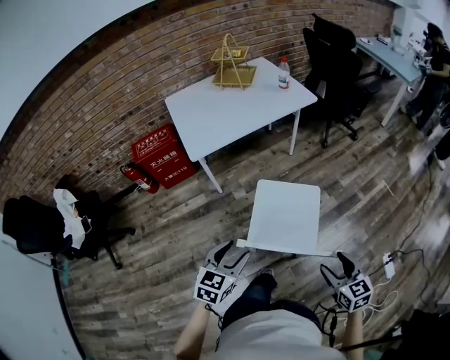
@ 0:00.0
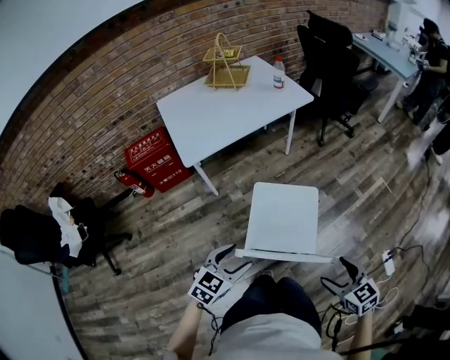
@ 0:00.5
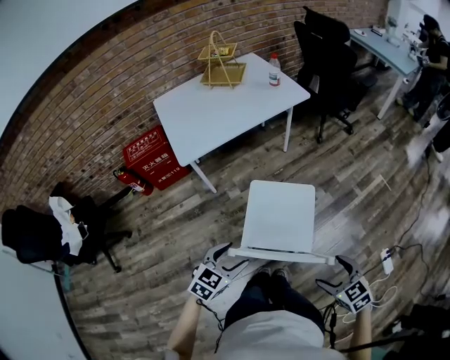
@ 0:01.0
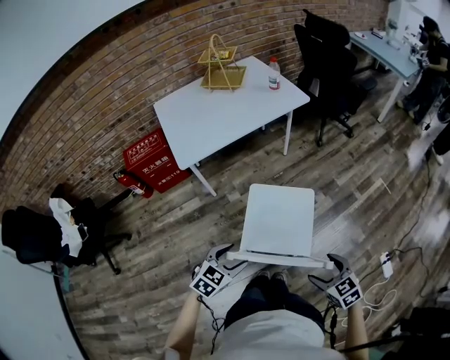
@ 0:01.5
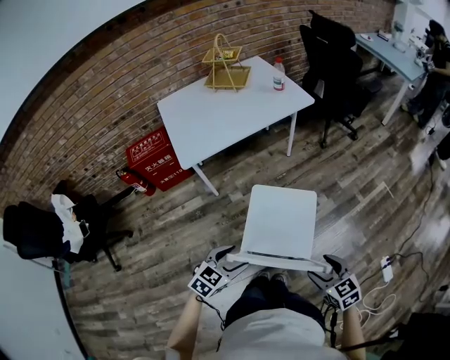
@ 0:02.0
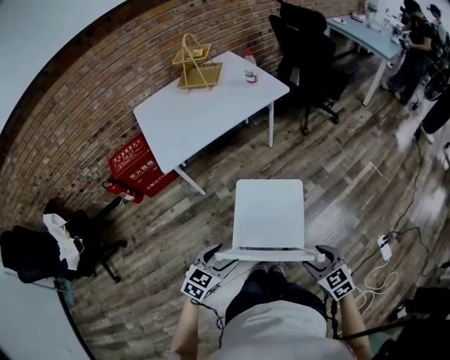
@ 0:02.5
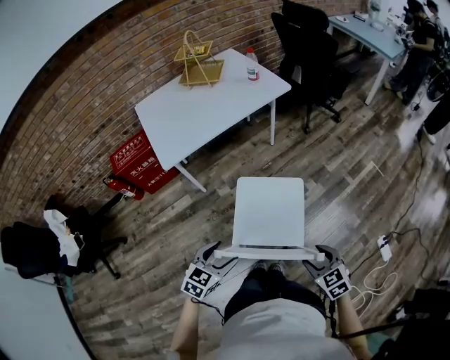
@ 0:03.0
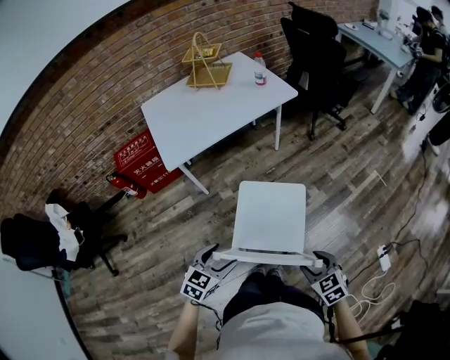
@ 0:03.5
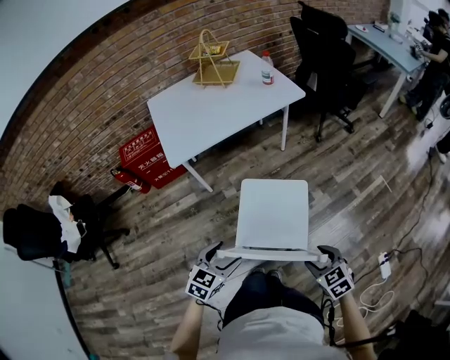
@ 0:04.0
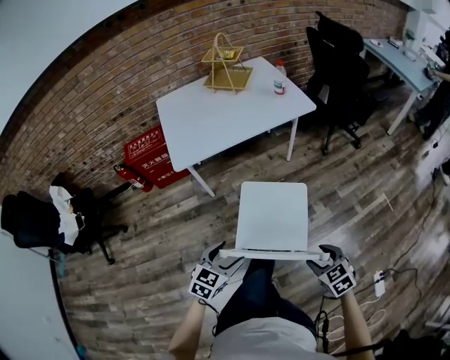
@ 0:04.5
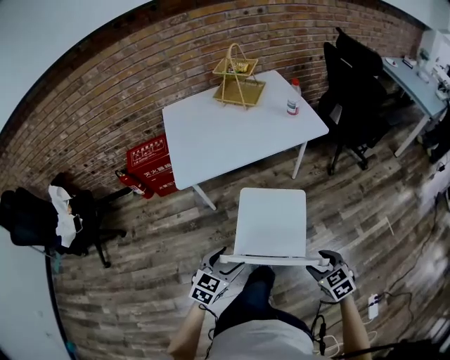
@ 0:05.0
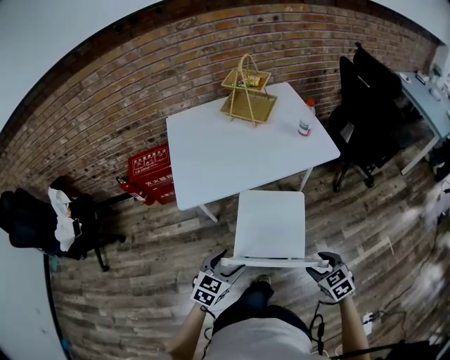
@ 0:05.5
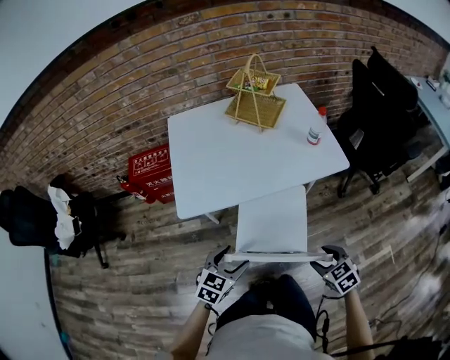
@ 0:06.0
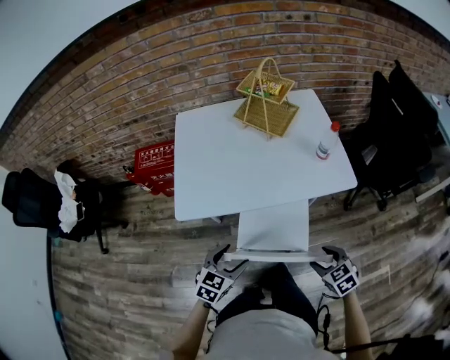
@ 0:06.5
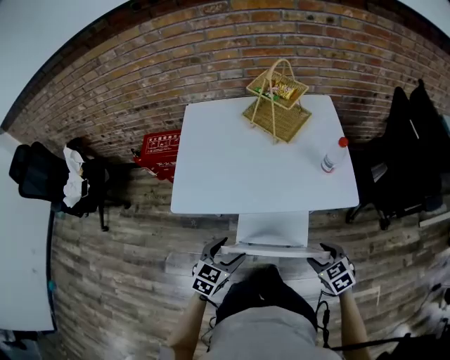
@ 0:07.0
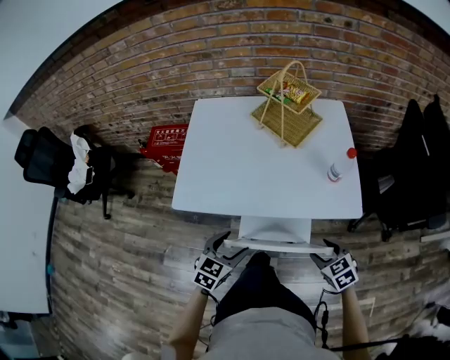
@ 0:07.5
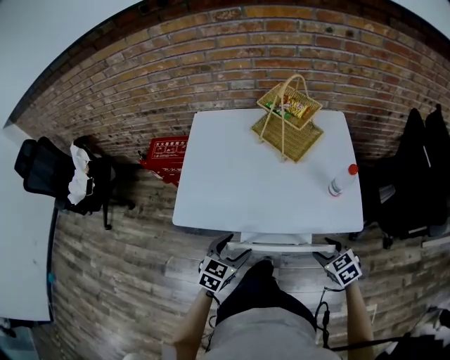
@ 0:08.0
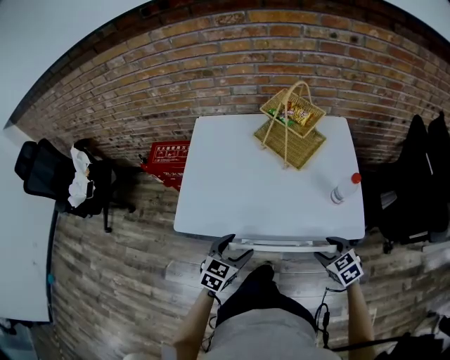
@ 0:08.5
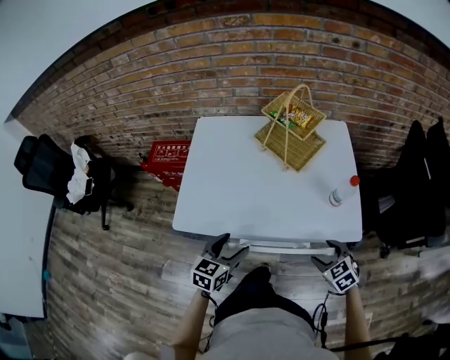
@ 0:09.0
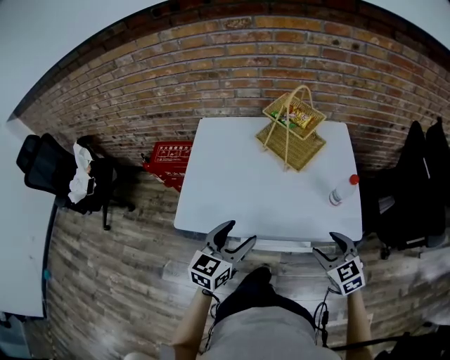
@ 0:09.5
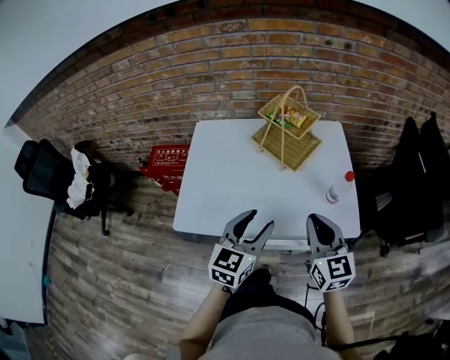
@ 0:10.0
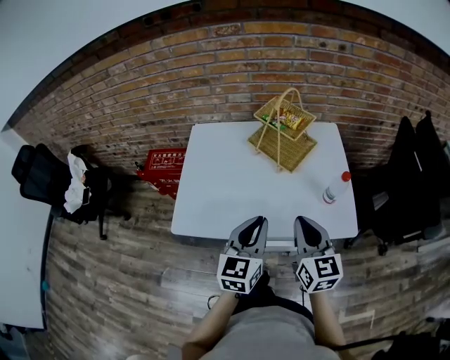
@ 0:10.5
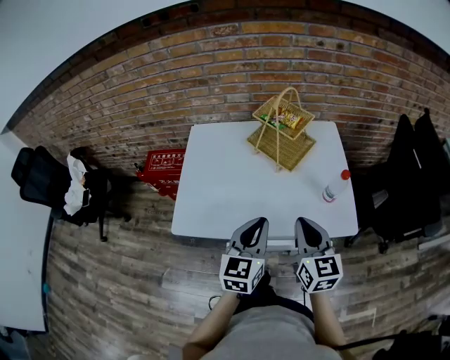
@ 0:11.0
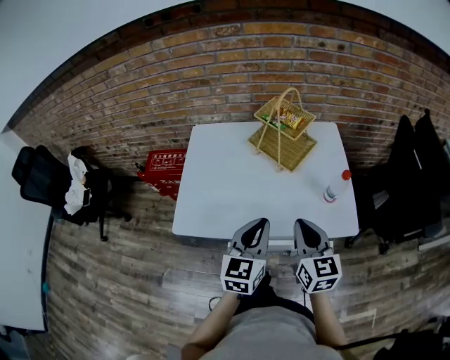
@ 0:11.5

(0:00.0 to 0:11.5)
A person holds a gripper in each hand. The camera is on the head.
0:00.0 - 0:02.0: The right gripper ends up approximately 5 cm from where it was; the left gripper travels downward by about 5 cm.
0:02.0 - 0:04.0: The right gripper moves roughly 5 cm.
0:04.0 - 0:06.0: The two grippers go approximately 35 cm forward.
0:06.0 - 0:07.5: The grippers both shift forward and to the right by roughly 20 cm.
0:07.5 - 0:09.5: The right gripper travels forward and upward by approximately 15 cm. The left gripper is displaced upward and forward by some 15 cm, and changes its angle by some 20 degrees.
0:09.5 - 0:11.5: The left gripper travels to the right by approximately 5 cm, and closes its fingers. The right gripper heads upward and to the left, covering about 15 cm, changes its angle by about 30 degrees, and closes.

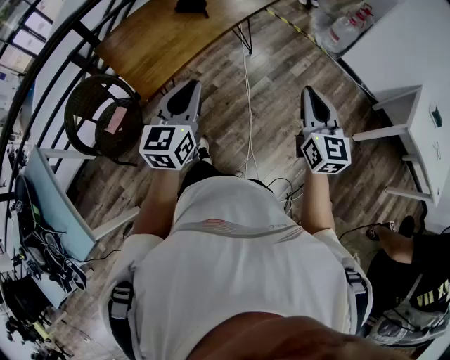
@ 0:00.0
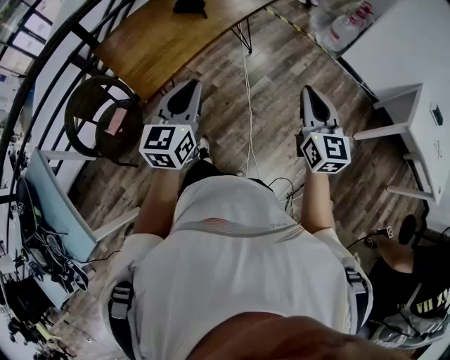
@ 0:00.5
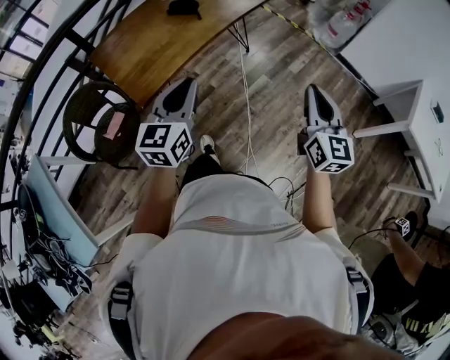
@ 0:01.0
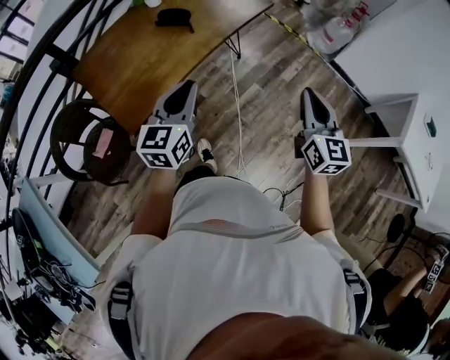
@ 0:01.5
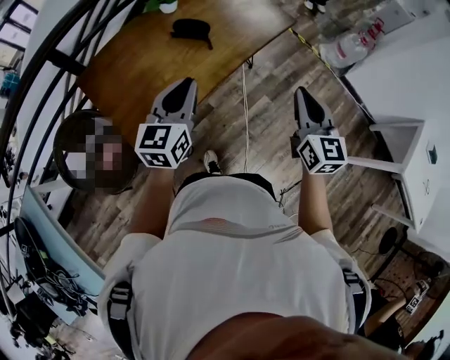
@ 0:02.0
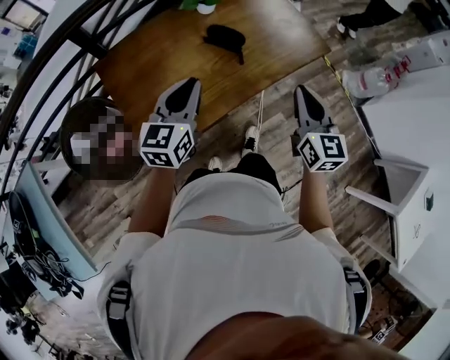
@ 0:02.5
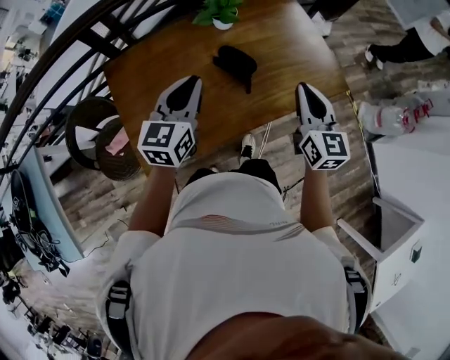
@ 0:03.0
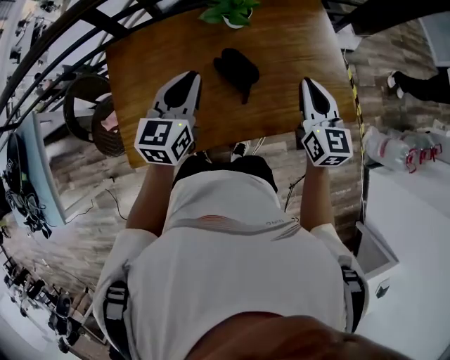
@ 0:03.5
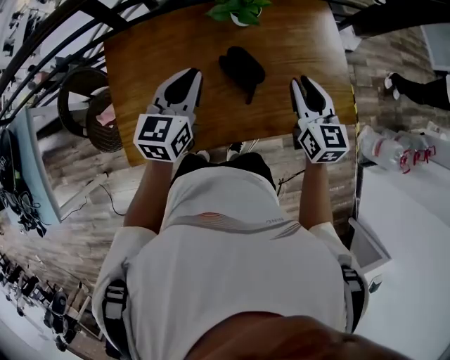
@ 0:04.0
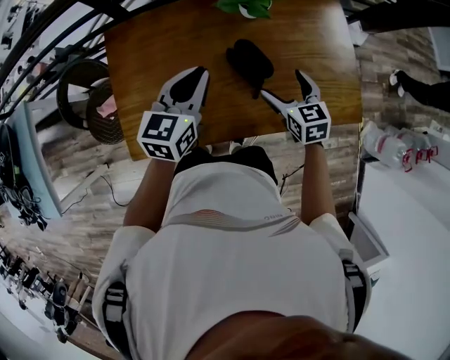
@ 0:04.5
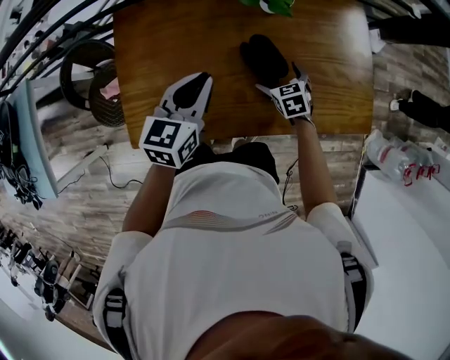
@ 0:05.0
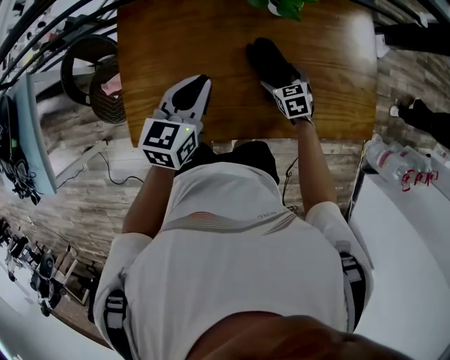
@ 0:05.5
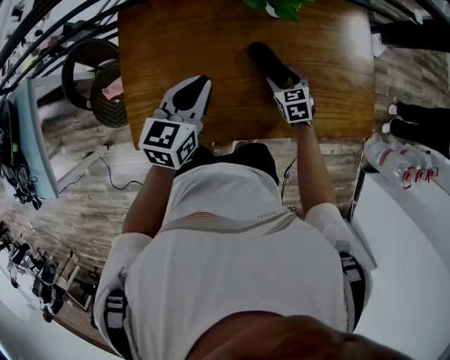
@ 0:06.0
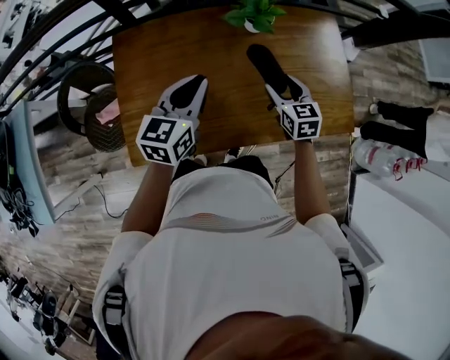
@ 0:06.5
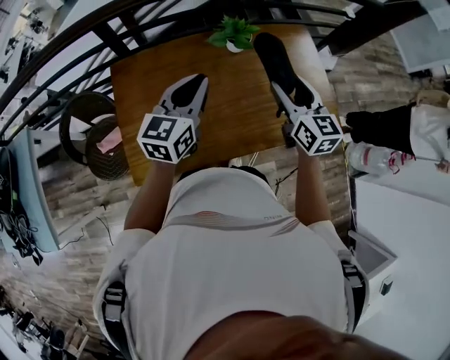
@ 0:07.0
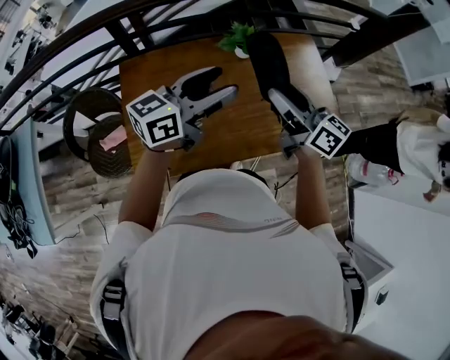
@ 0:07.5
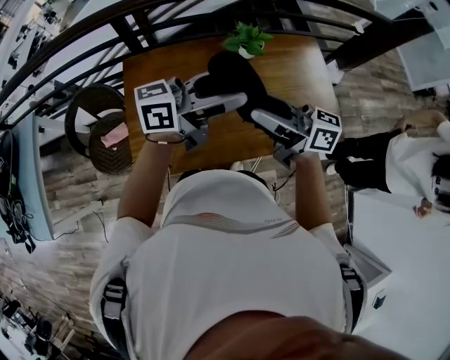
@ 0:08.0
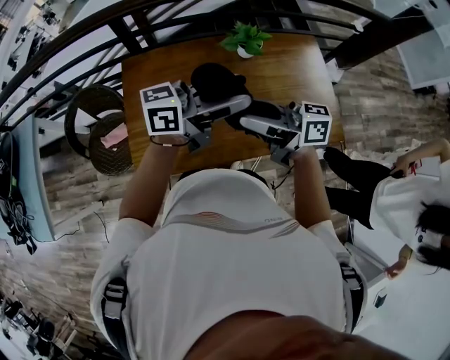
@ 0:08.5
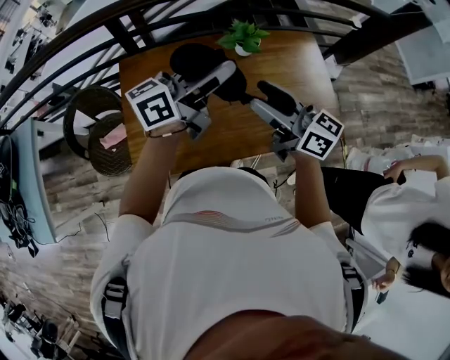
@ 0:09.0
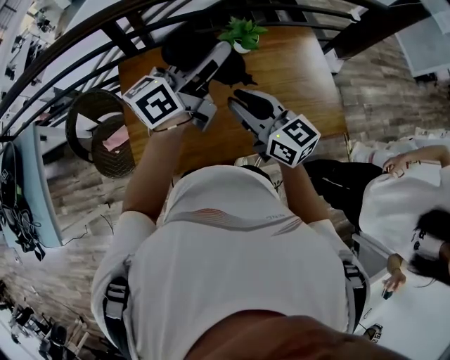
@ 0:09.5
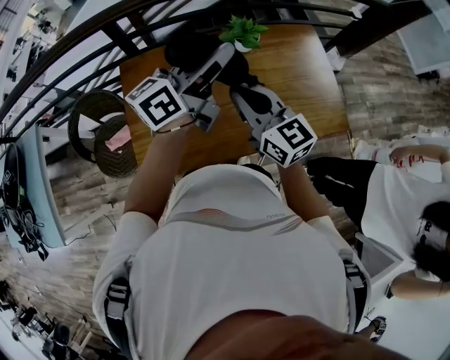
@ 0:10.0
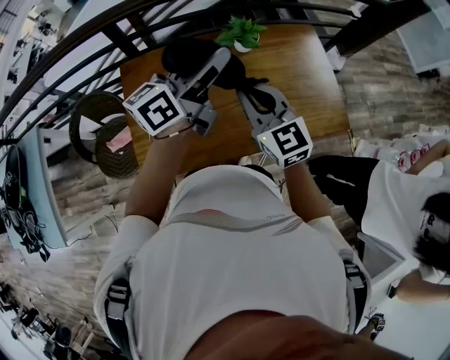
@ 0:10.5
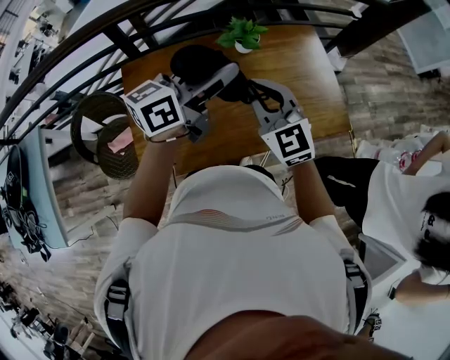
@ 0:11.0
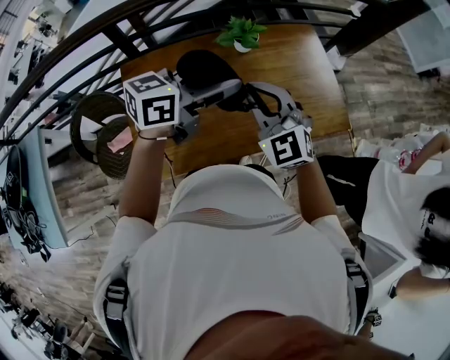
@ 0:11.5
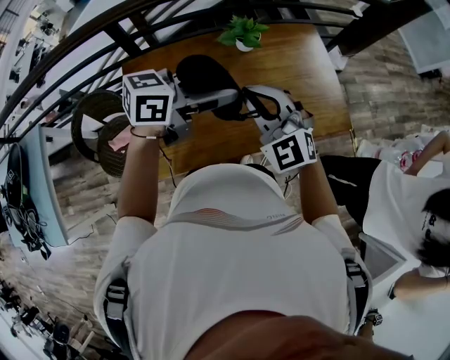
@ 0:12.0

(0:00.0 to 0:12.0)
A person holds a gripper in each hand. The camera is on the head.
0:00.0 - 0:02.0: Both grippers travel together forward, approximately 30 cm.
0:02.0 - 0:04.0: The left gripper ends up roughly 25 cm from where it was, and swivels roughly 30 degrees, while the right gripper shifts by about 40 cm, and changes its angle by some 40 degrees.
0:04.0 - 0:06.0: The left gripper heads downward, covering some 5 cm, while the right gripper moves downward, roughly 25 cm, rotates some 30 degrees, and opens, then closes once more.
0:06.0 - 0:08.0: The left gripper is displaced upward by approximately 20 cm, angles its fingers upward, by about 40 degrees, and opens; the right gripper moves upward, roughly 35 cm, and tips its fingers upward by approximately 60 degrees.
0:08.0 - 0:10.0: The right gripper turns by some 40 degrees, and closes its fingers; the left gripper moves about 10 cm, and rotates about 20 degrees.
0:10.0 - 0:12.0: The left gripper travels backward and downward by roughly 10 cm, and rotates approximately 40 degrees; the right gripper twists roughly 50 degrees counterclockwise, seen from behind.

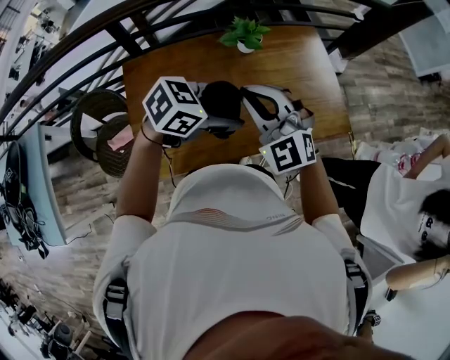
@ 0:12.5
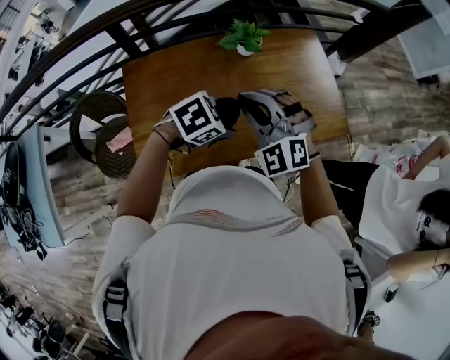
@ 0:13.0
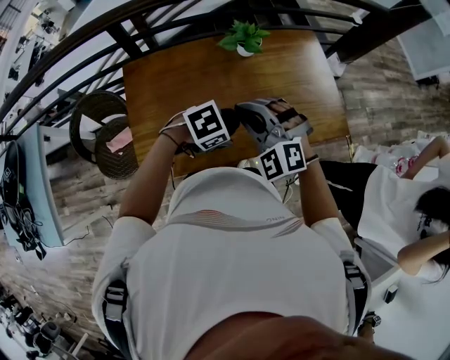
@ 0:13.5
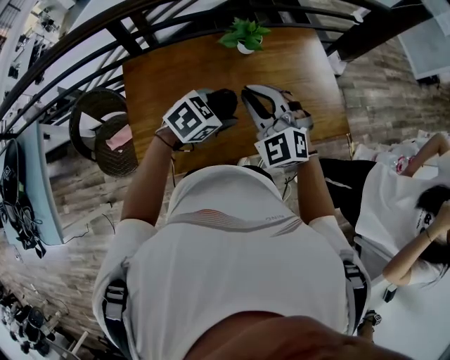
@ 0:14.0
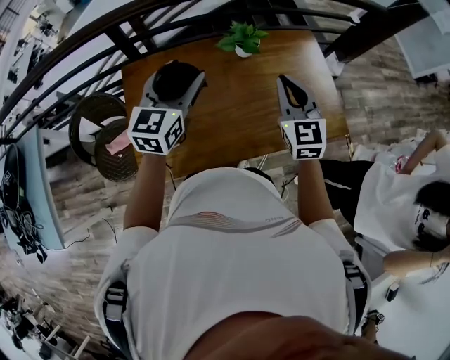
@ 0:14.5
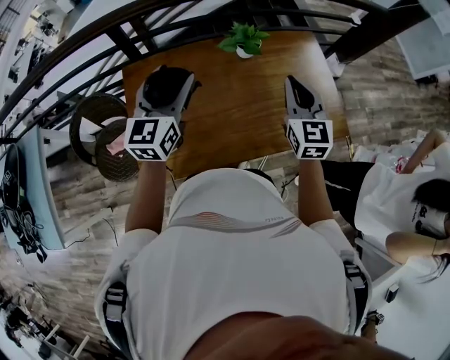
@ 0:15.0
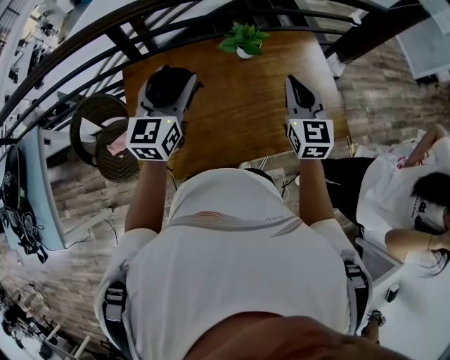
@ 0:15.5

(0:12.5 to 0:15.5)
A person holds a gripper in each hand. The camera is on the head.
0:12.5 - 0:14.0: The left gripper heads downward, covering roughly 10 cm.
0:14.0 - 0:15.5: The left gripper travels to the left, upward and forward by roughly 20 cm, and tips its fingers upward by some 40 degrees; the right gripper moves to the right and forward, approximately 15 cm, and swivels about 40 degrees.
